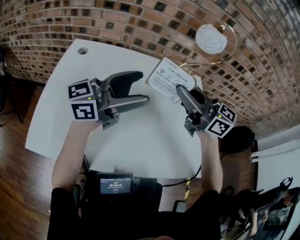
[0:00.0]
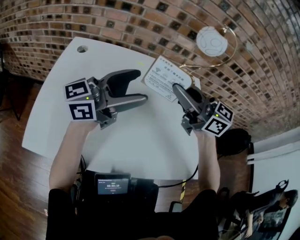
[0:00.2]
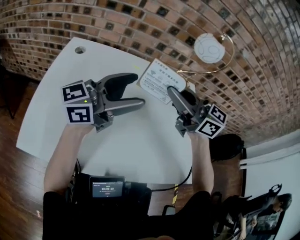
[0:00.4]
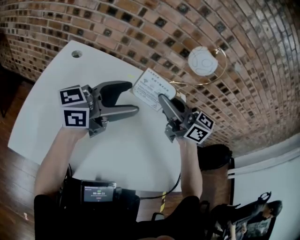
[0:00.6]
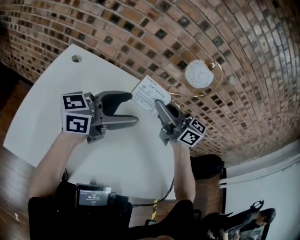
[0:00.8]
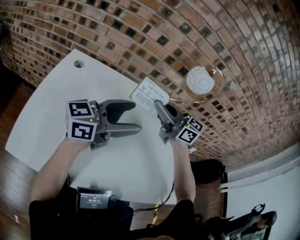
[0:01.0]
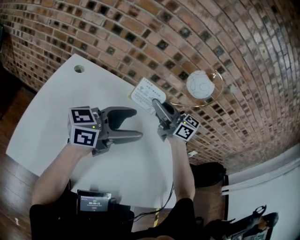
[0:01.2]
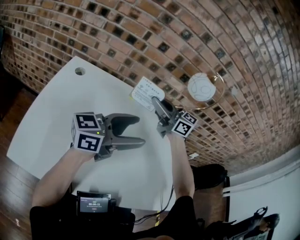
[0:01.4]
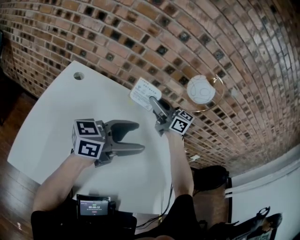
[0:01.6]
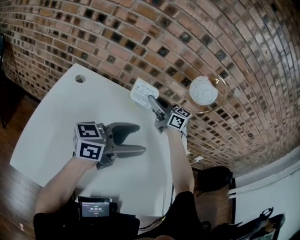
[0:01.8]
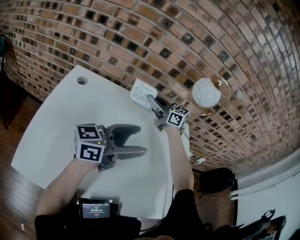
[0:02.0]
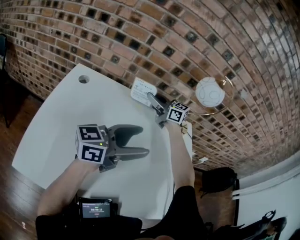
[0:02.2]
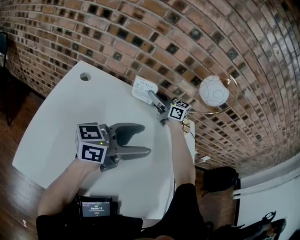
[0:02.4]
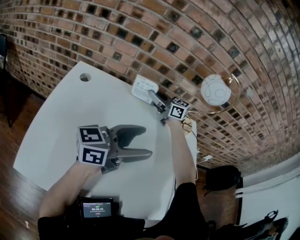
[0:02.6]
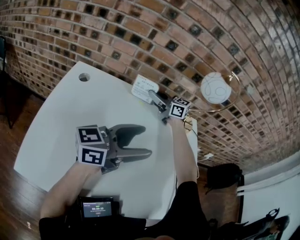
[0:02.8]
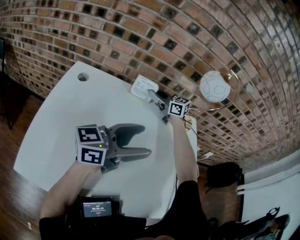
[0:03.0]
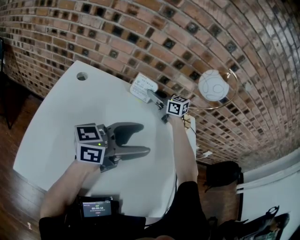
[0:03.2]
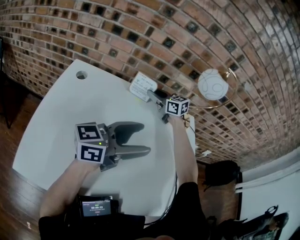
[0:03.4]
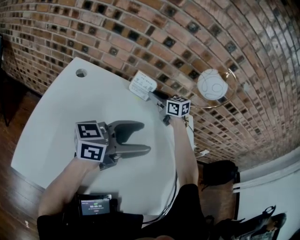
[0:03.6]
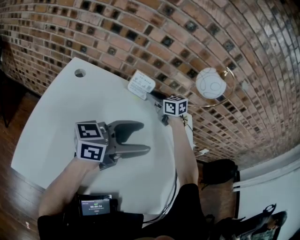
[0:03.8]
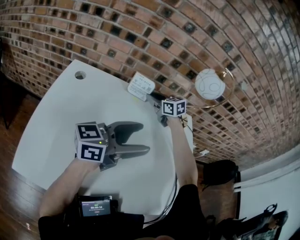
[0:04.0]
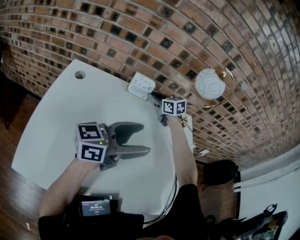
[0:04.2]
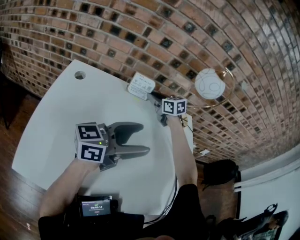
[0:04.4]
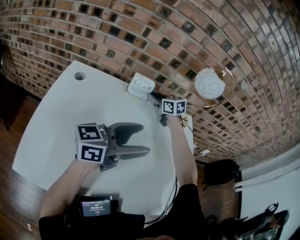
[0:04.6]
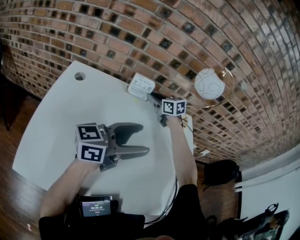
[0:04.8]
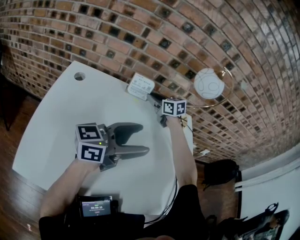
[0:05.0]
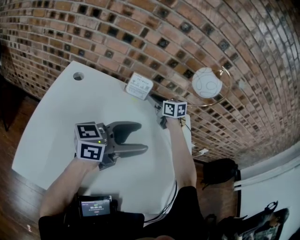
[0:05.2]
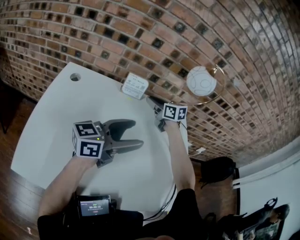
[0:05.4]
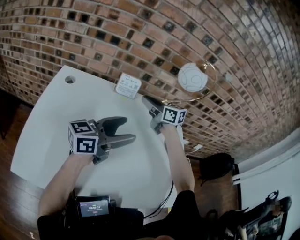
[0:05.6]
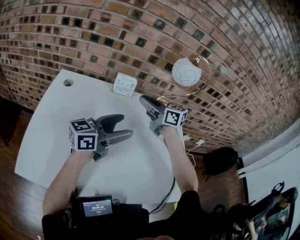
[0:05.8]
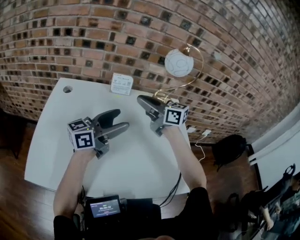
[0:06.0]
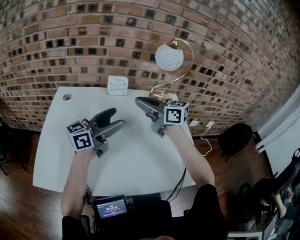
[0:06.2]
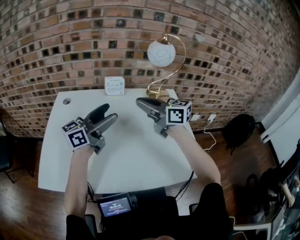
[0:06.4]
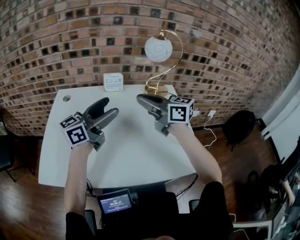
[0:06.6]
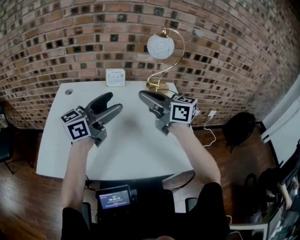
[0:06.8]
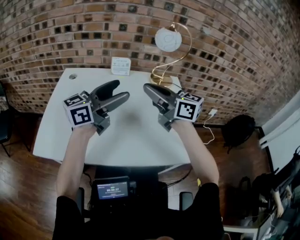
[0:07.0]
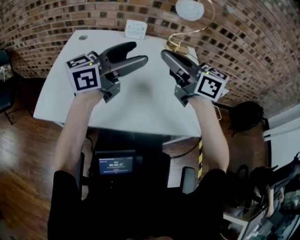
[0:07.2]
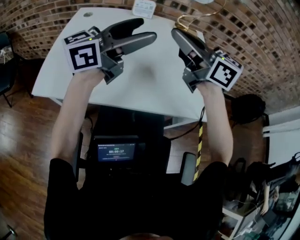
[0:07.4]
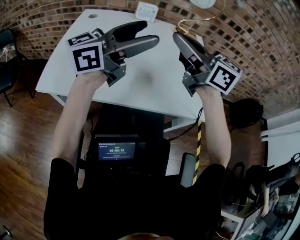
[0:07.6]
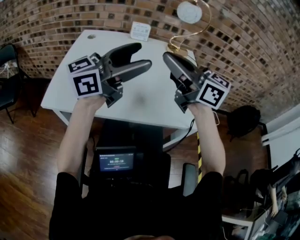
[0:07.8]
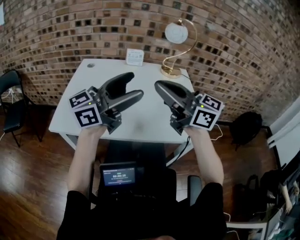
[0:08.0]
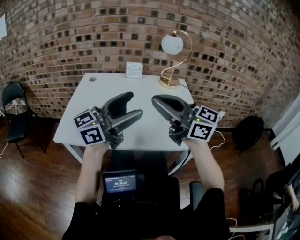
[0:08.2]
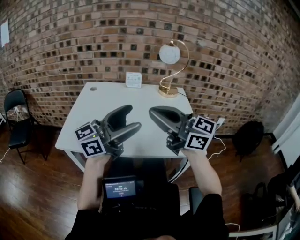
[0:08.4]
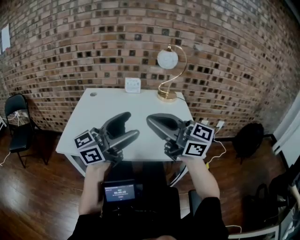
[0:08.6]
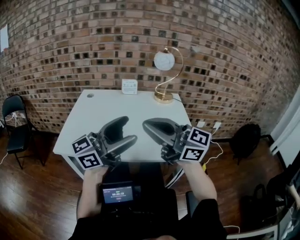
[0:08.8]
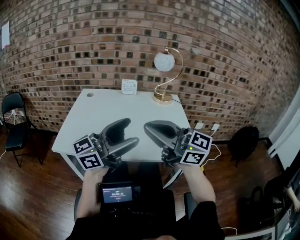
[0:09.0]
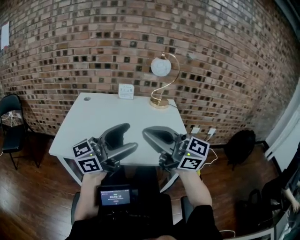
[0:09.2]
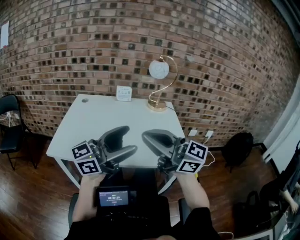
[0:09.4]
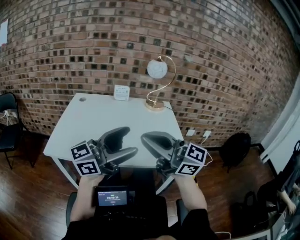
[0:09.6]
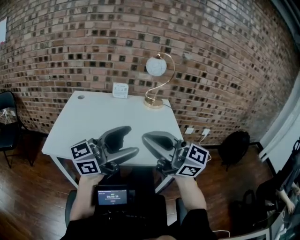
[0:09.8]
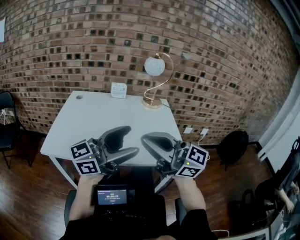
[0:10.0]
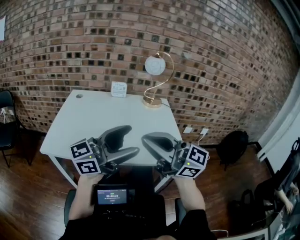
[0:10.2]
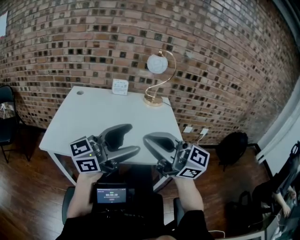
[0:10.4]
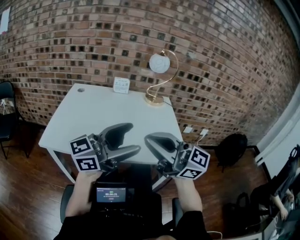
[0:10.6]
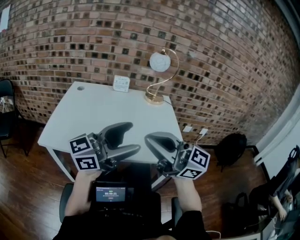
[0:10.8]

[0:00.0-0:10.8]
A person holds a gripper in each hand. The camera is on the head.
0.0 to 1.6 s: The right gripper changes place by some 20 cm.
1.6 to 3.0 s: The right gripper ends up roughly 15 cm from where it was.
3.0 to 4.6 s: The right gripper swivels roughly 20 degrees.
4.6 to 6.2 s: The right gripper goes approximately 25 cm backward and upward, and swivels about 30 degrees.
6.2 to 7.8 s: The right gripper is displaced backward by some 25 cm. The left gripper travels backward and upward by approximately 20 cm.
7.8 to 9.2 s: The right gripper ends up roughly 15 cm from where it was, while the left gripper ends up roughly 10 cm from where it was.
9.2 to 10.8 s: The grippers stay close to where they were, moving slightly.

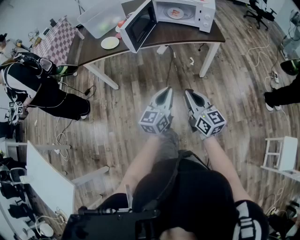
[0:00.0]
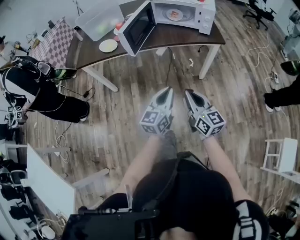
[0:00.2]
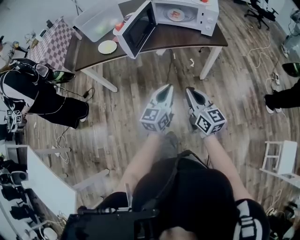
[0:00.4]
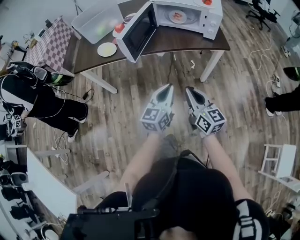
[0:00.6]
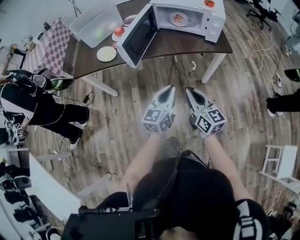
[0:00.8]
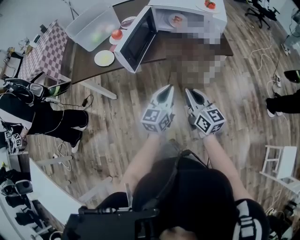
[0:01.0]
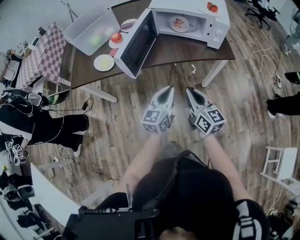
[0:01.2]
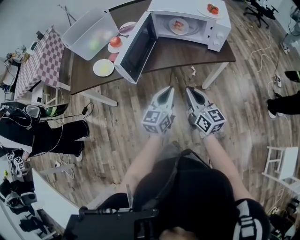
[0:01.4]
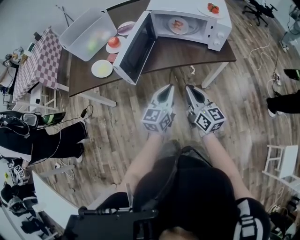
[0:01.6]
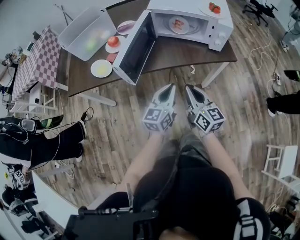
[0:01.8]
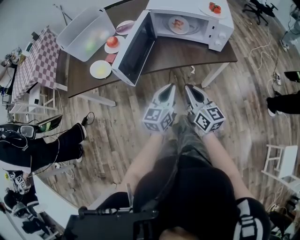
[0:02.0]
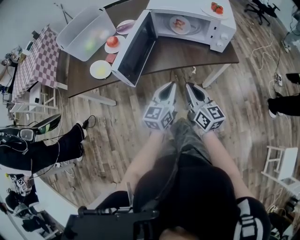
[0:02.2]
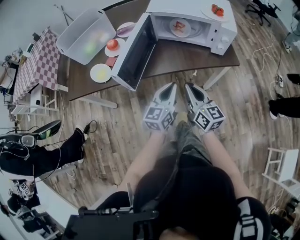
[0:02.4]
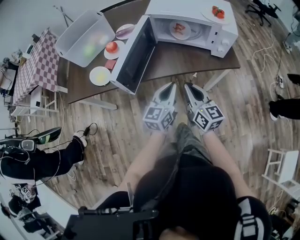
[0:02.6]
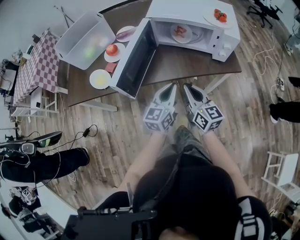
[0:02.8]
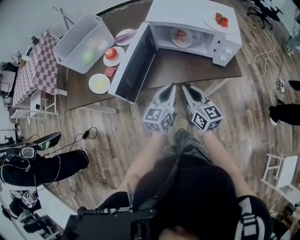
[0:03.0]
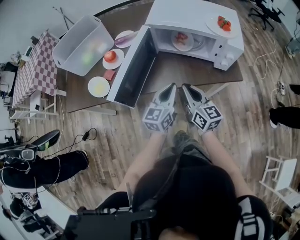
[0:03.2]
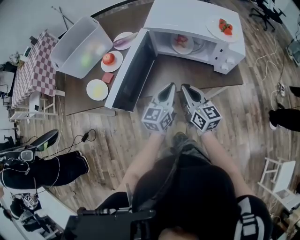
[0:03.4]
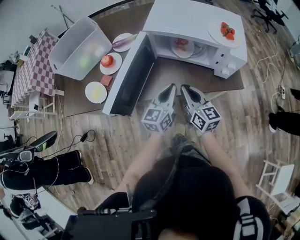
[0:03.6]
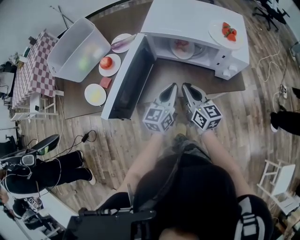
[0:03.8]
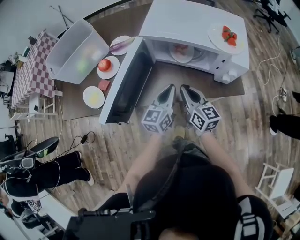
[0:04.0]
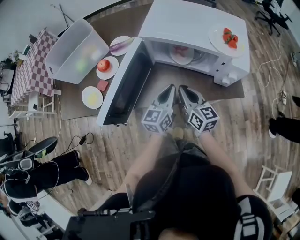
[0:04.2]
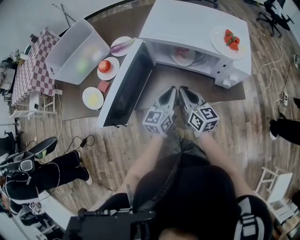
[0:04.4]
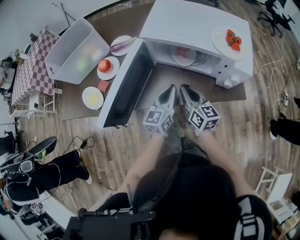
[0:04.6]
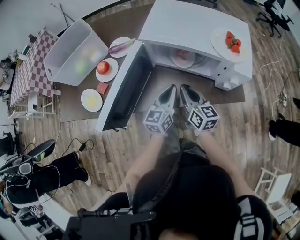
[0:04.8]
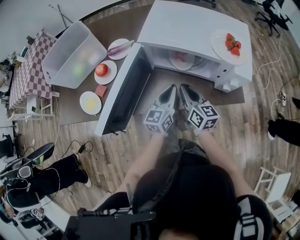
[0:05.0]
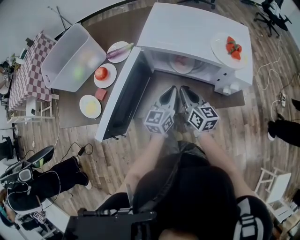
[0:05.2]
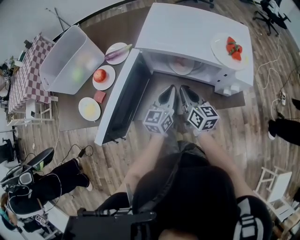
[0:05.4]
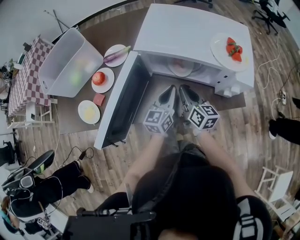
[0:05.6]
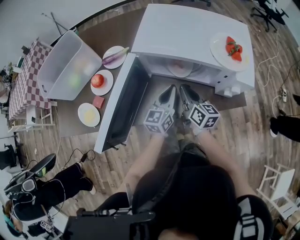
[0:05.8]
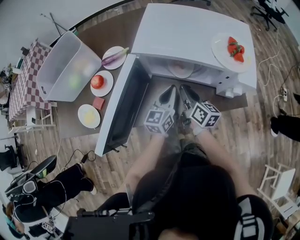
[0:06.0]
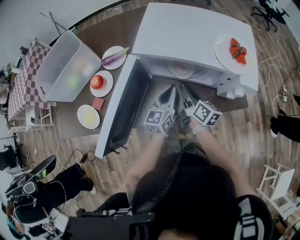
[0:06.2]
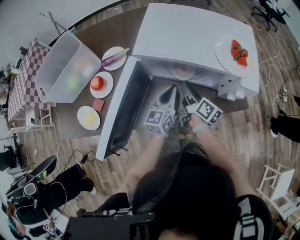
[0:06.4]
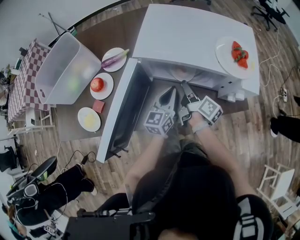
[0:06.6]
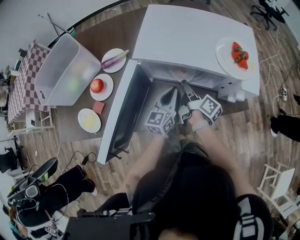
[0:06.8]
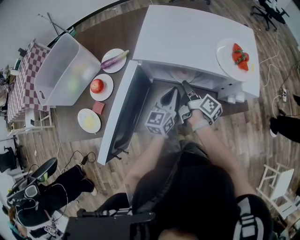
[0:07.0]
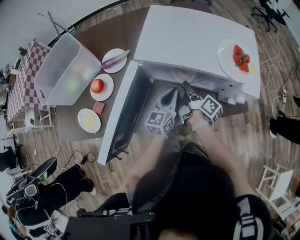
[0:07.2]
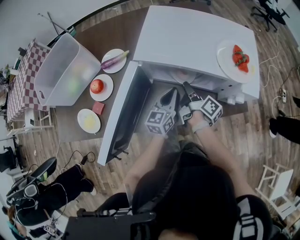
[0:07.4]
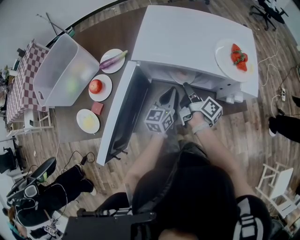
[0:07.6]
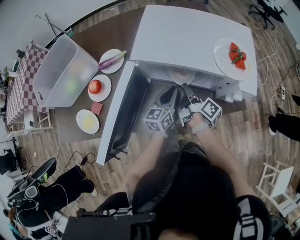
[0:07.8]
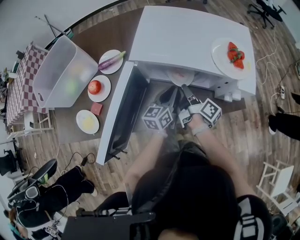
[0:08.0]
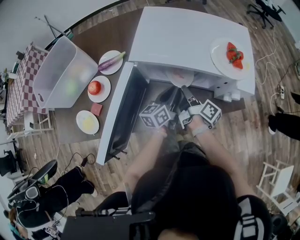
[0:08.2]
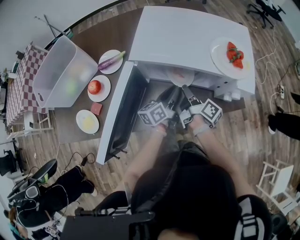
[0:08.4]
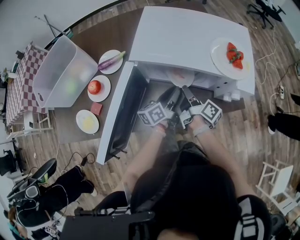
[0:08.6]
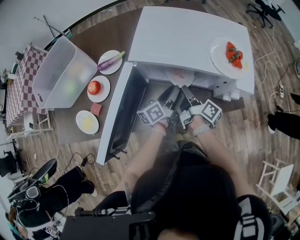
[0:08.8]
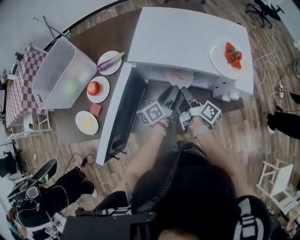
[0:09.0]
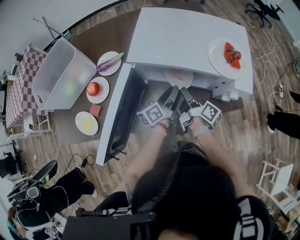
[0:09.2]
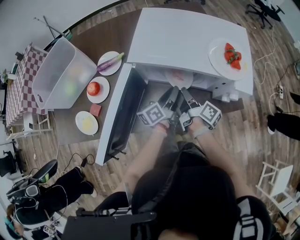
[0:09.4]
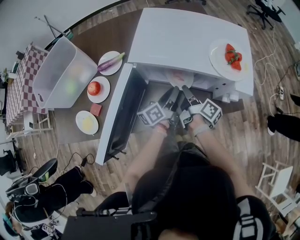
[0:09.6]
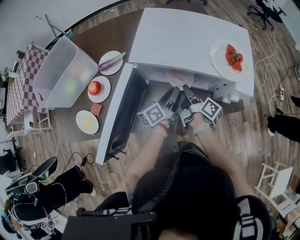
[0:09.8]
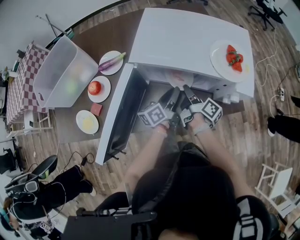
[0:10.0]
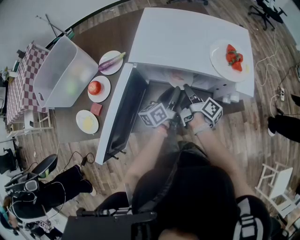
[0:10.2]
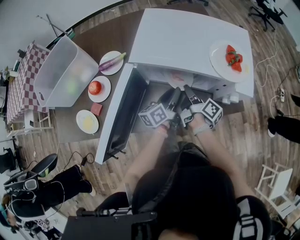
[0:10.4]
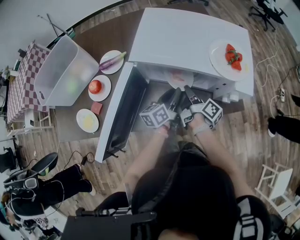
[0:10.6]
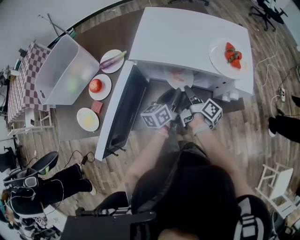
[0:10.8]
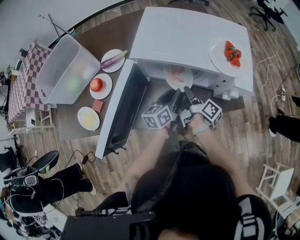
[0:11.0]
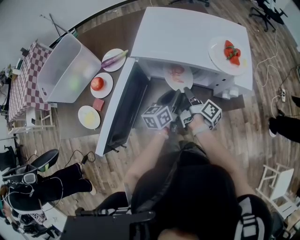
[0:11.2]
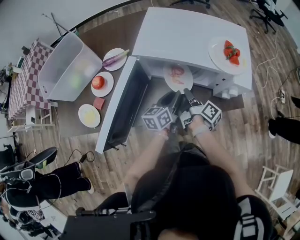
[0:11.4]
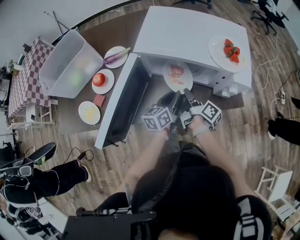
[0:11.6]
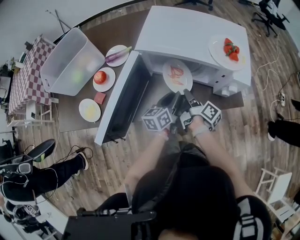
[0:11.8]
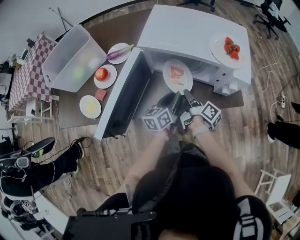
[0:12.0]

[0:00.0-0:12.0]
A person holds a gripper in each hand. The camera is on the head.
0.0 to 1.6 s: Both grippers travel together forward, about 25 cm.
1.6 to 3.0 s: The two grippers go approximately 10 cm forward.
3.0 to 4.4 s: The grippers both shift forward by roughly 10 cm.
4.4 to 6.0 s: The two grippers go approximately 10 cm forward. The right gripper rotates roughly 20 degrees.
6.0 to 7.6 s: The right gripper turns by approximately 40 degrees.
7.6 to 9.0 s: The left gripper swivels about 40 degrees, and opens its fingers.
9.0 to 10.4 s: There are only small adjustments of the grippers.
10.4 to 12.0 s: The two grippers go approximately 5 cm backward.

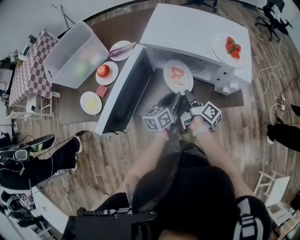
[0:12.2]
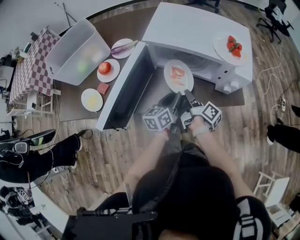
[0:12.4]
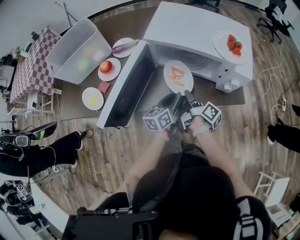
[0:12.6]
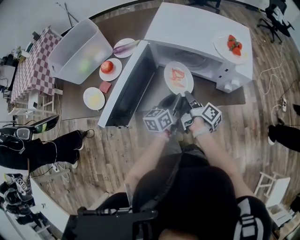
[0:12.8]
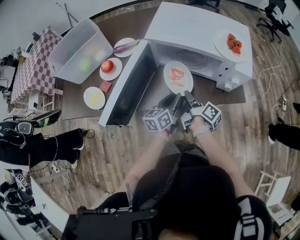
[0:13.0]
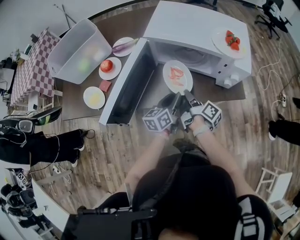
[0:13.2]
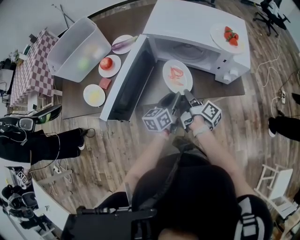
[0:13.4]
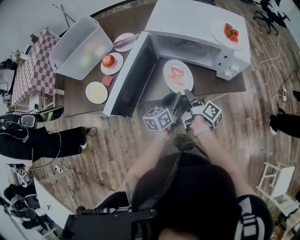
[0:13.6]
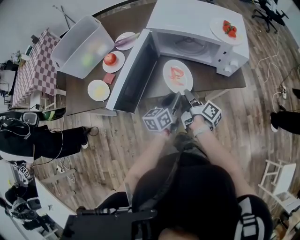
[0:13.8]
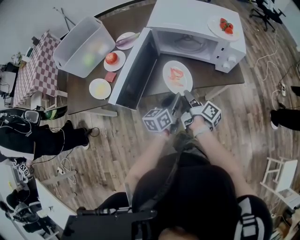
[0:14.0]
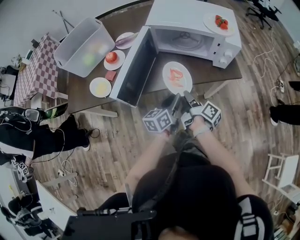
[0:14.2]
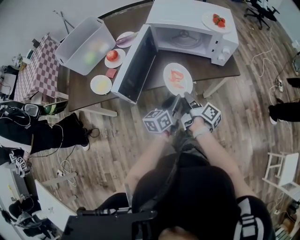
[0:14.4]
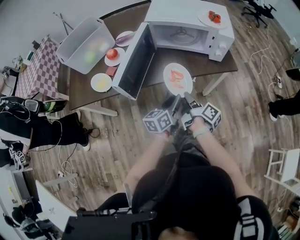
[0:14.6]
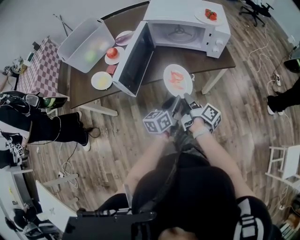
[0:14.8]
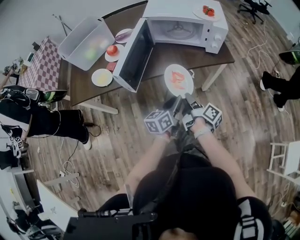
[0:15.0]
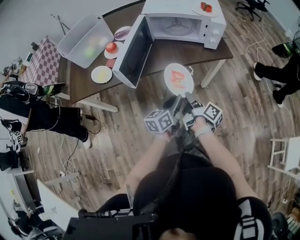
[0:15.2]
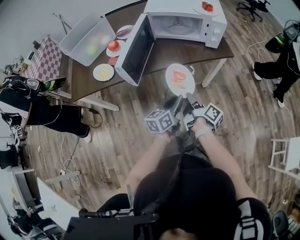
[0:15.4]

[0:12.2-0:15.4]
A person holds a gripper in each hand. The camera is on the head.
12.2 to 13.8 s: The two grippers go roughly 10 cm backward.
13.8 to 15.4 s: Both grippers travel together backward, some 20 cm.
